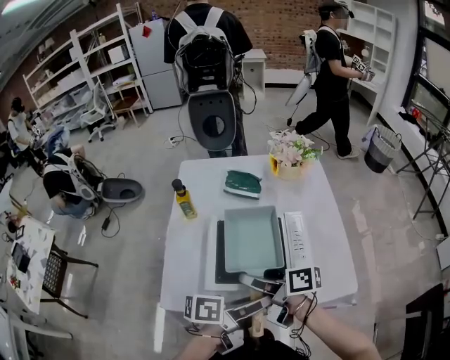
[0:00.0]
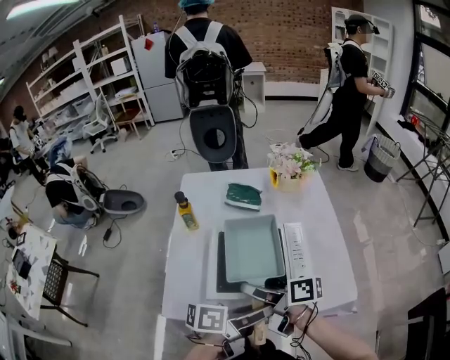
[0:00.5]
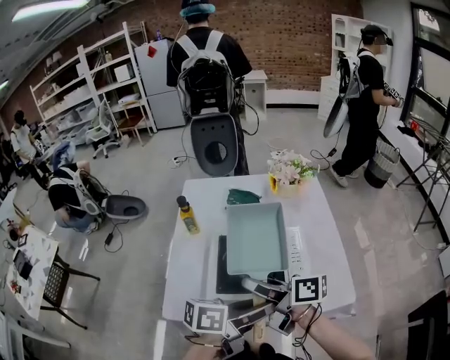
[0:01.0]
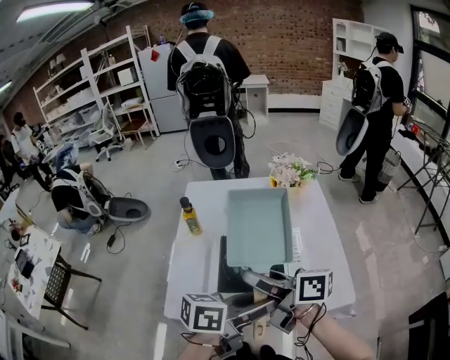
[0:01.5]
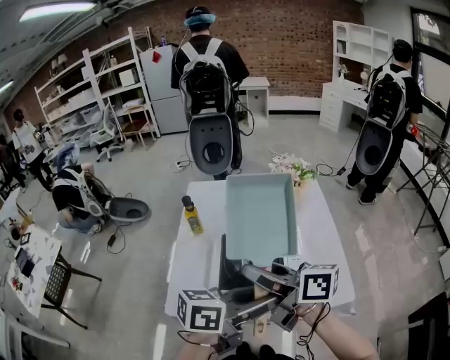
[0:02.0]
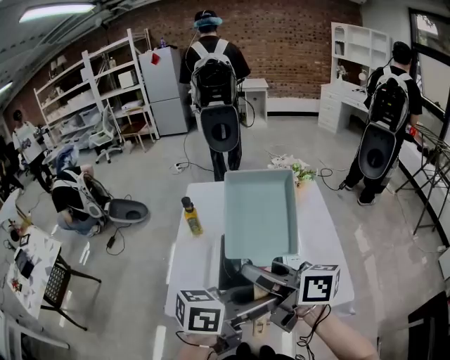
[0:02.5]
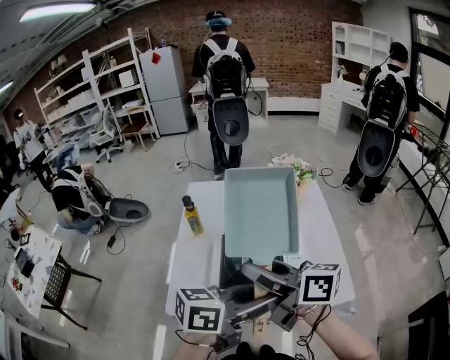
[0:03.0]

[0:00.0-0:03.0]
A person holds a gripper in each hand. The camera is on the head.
0:00.0 to 0:01.5: The two grippers go approximately 10 cm upward. The left gripper swivels some 20 degrees; the right gripper turns by about 20 degrees.
0:01.5 to 0:03.0: The right gripper heads upward, covering approximately 5 cm.

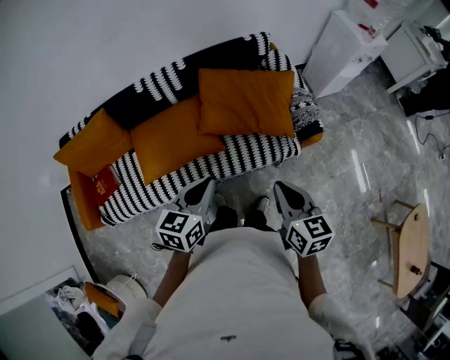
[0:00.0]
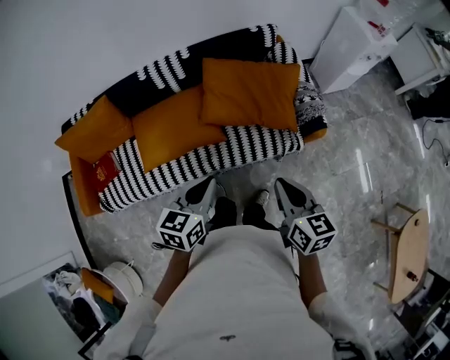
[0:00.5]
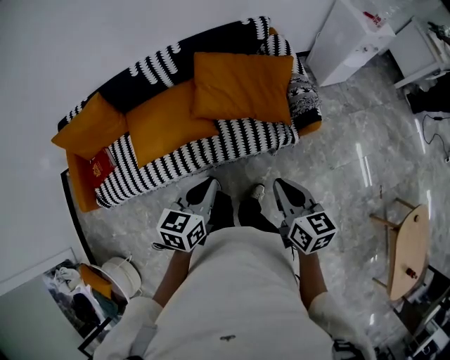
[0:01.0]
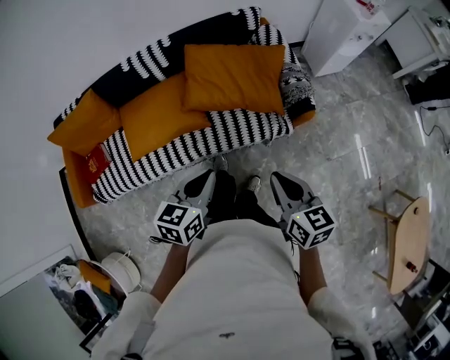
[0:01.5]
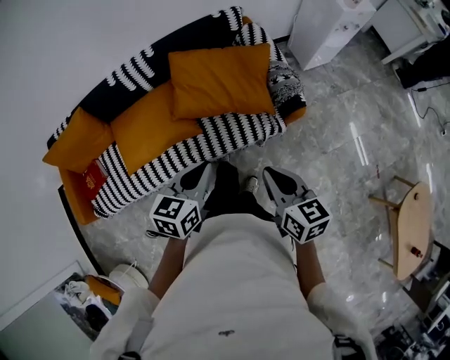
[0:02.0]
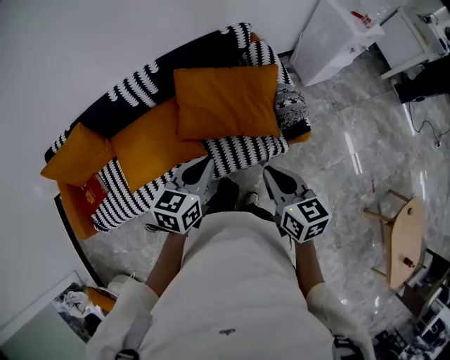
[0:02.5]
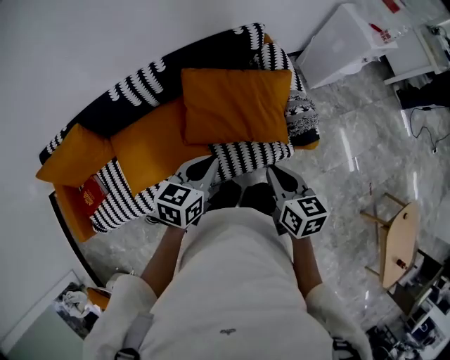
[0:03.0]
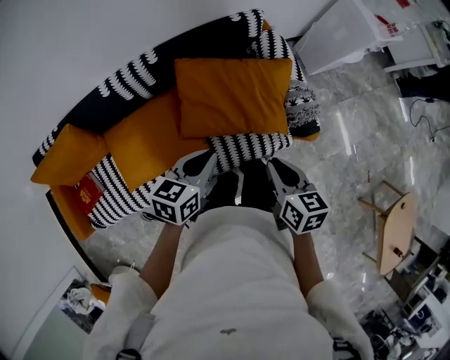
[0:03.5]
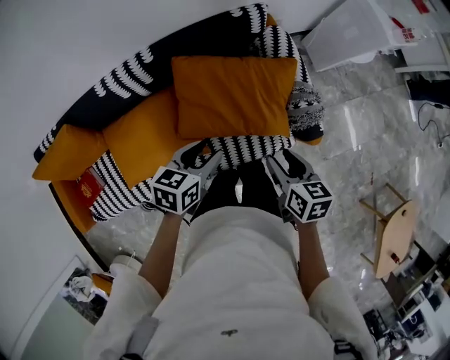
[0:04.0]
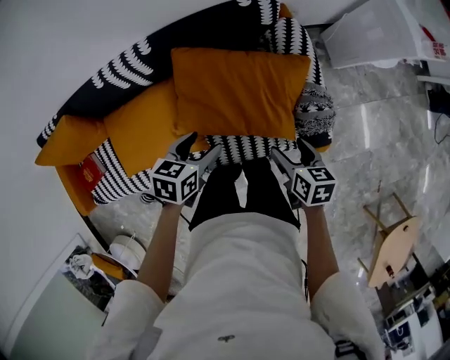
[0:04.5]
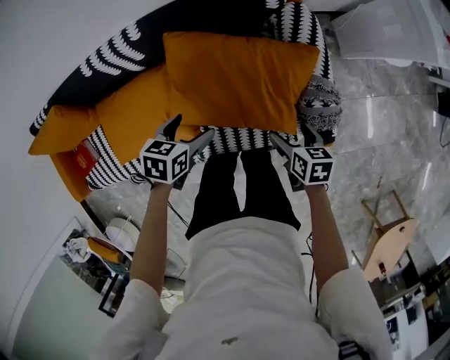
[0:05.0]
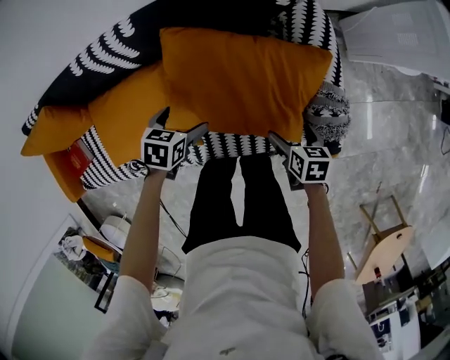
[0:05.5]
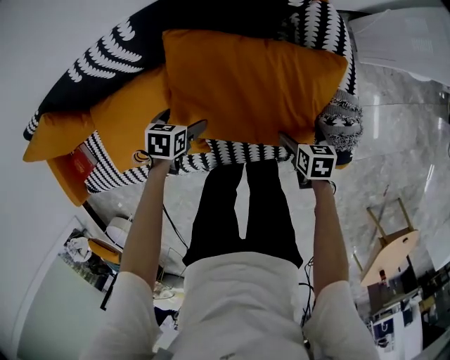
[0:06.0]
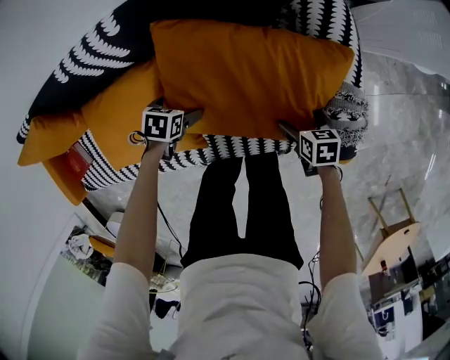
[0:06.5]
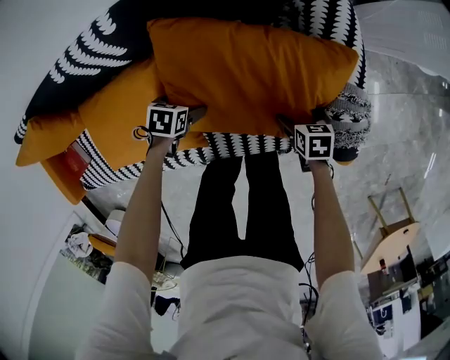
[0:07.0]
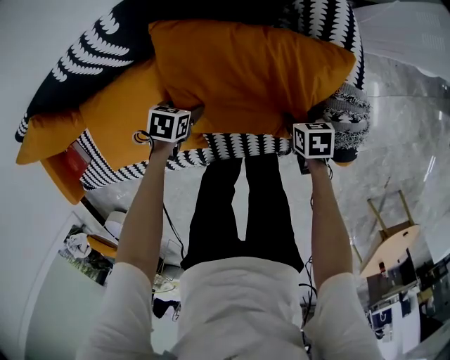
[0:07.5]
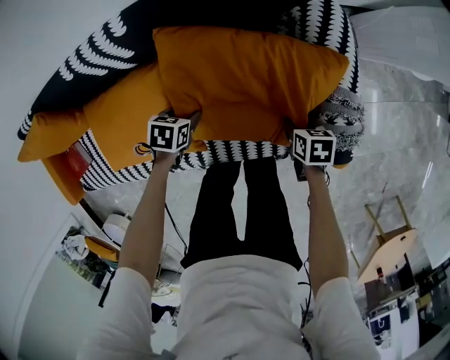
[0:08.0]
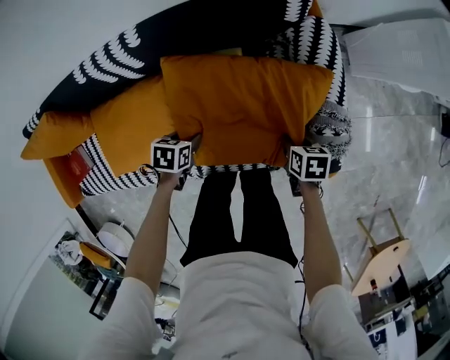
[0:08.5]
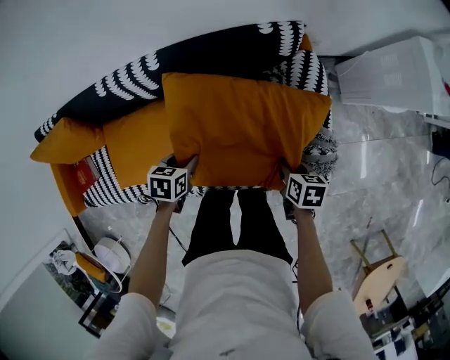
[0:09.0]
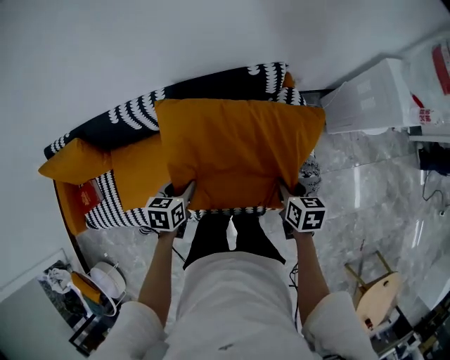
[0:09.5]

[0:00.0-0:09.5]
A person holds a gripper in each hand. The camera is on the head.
0:00.0 to 0:02.0: Both grippers travel together to the right, about 10 cm.
0:02.0 to 0:04.0: The right gripper shifts roughly 25 cm forward and downward; the left gripper shifts about 25 cm forward.
0:04.0 to 0:05.5: The grippers both shift downward by approximately 25 cm. The left gripper swivels roughly 20 degrees, and opens up. The right gripper opens up.
0:05.5 to 0:07.5: The two grippers go about 15 cm downward. The right gripper closes.
0:07.5 to 0:09.5: The two grippers go roughly 30 cm upward. The right gripper turns by approximately 20 degrees. Meanwhile the left gripper rotates approximately 30 degrees.

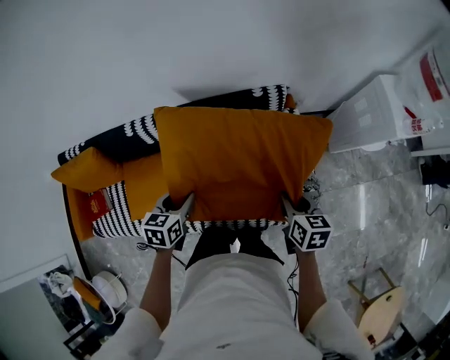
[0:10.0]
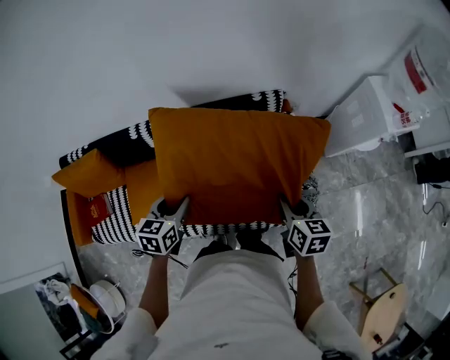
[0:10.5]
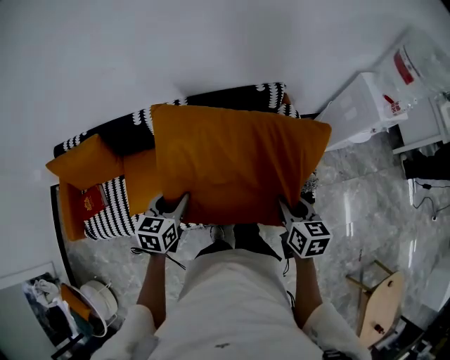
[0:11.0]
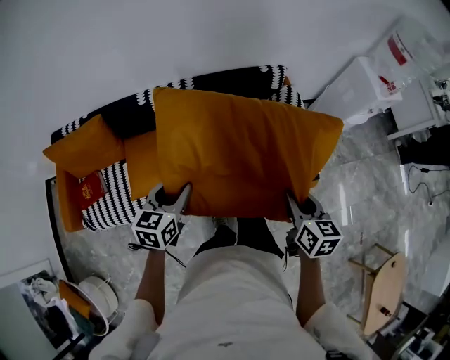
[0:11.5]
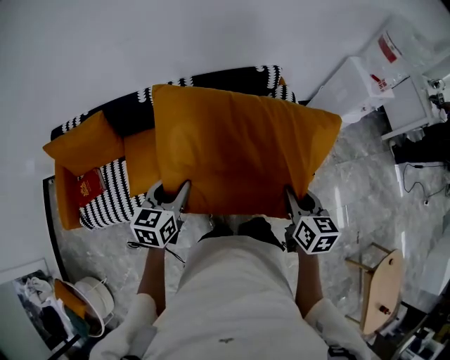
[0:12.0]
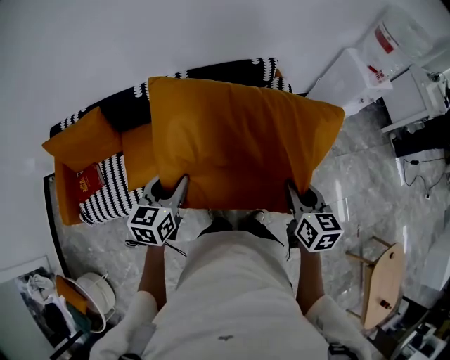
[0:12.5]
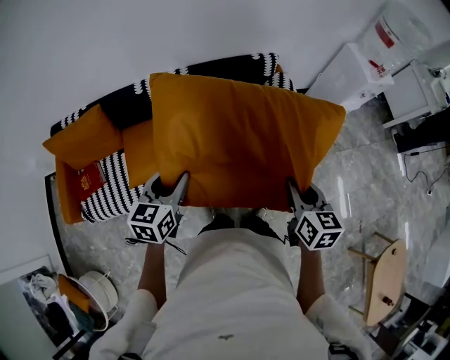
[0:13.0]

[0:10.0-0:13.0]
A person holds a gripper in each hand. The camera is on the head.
0:10.0 to 0:11.5: Both grippers move backward, to the left and upward, some 25 cm.
0:11.5 to 0:13.0: The left gripper changes place by approximately 5 cm, while the right gripper goes about 5 cm backward.

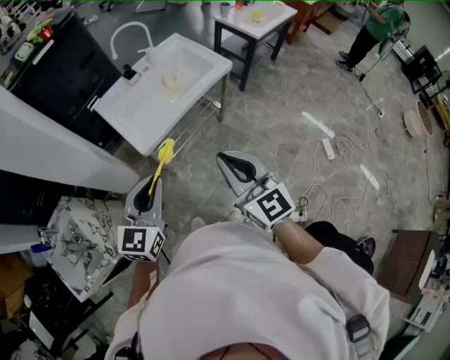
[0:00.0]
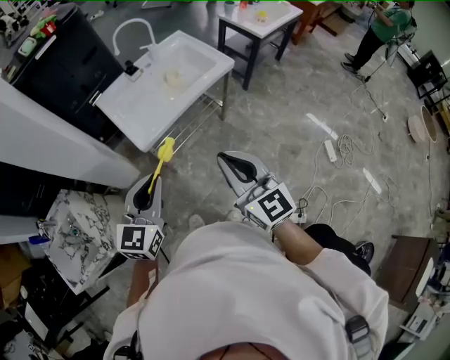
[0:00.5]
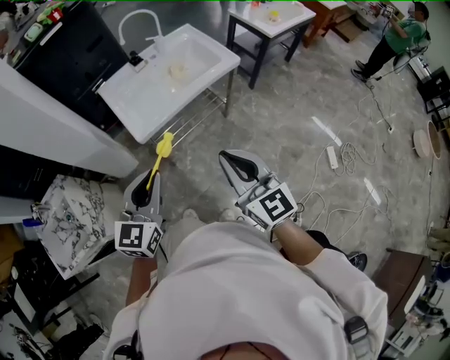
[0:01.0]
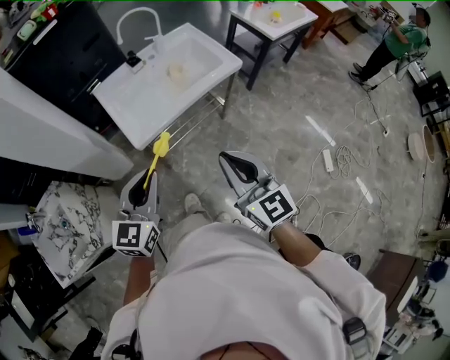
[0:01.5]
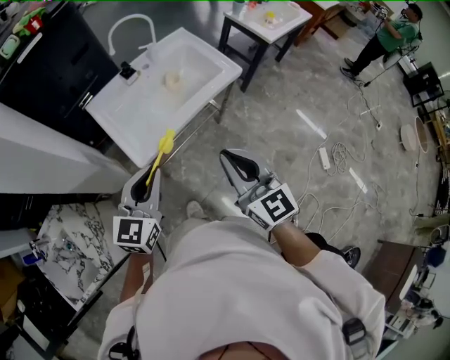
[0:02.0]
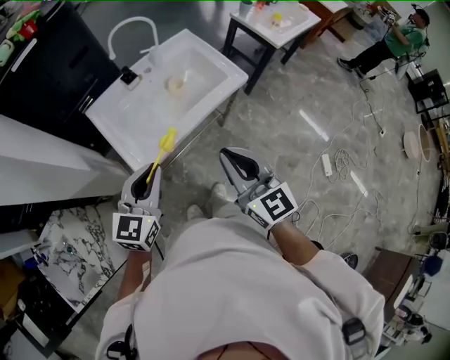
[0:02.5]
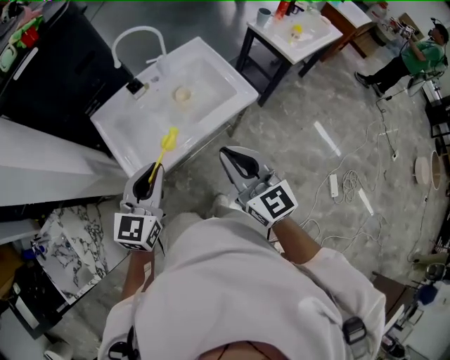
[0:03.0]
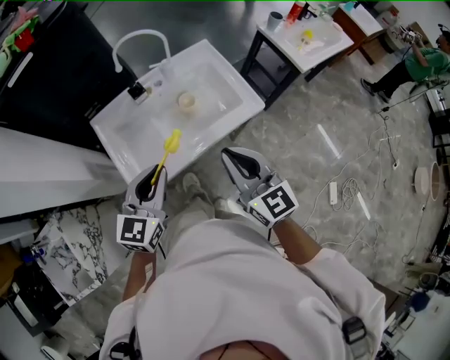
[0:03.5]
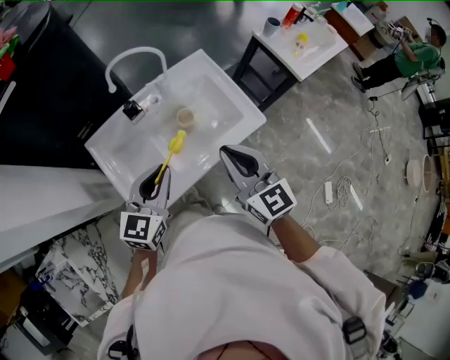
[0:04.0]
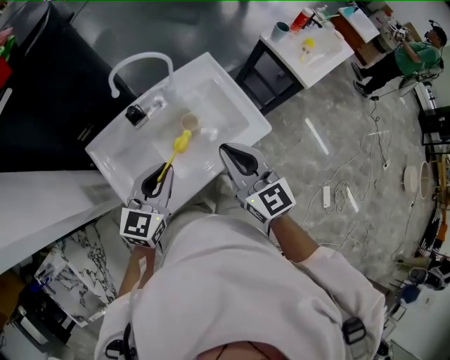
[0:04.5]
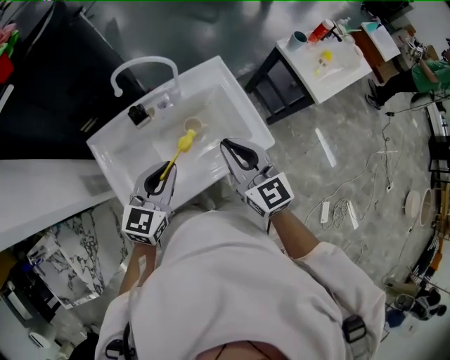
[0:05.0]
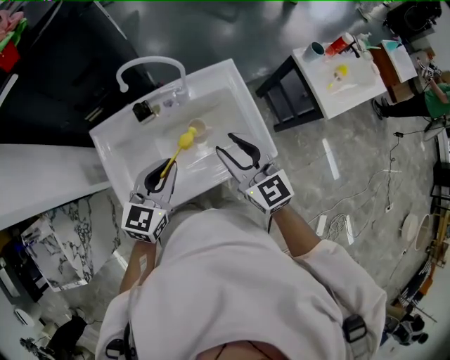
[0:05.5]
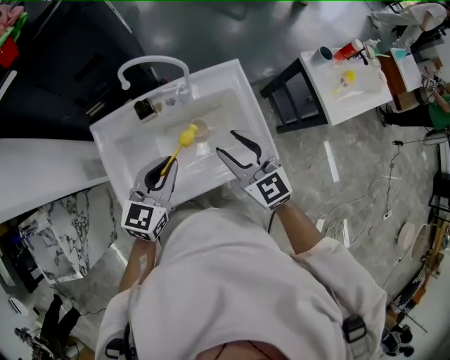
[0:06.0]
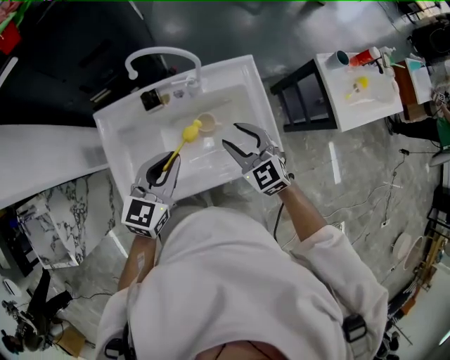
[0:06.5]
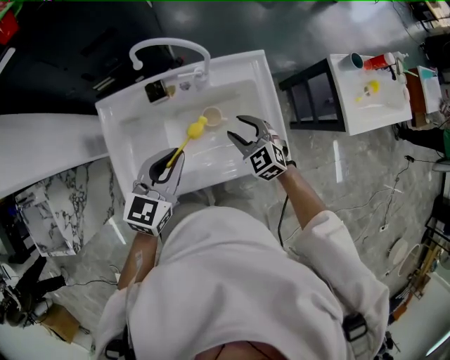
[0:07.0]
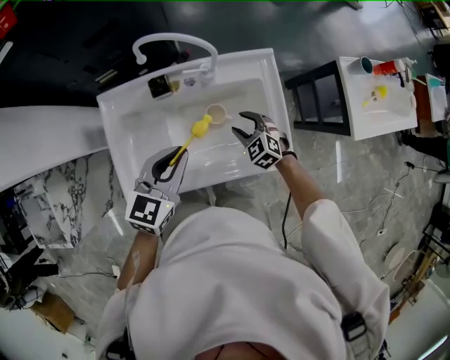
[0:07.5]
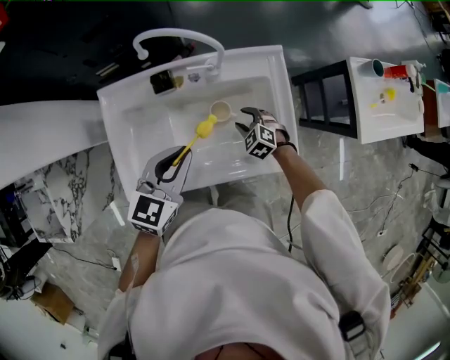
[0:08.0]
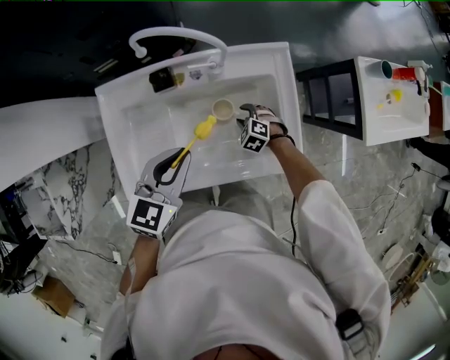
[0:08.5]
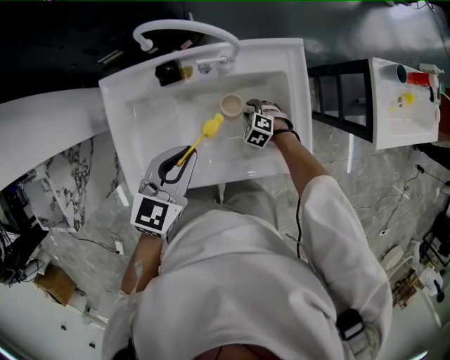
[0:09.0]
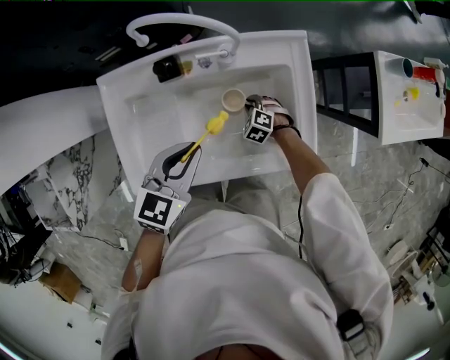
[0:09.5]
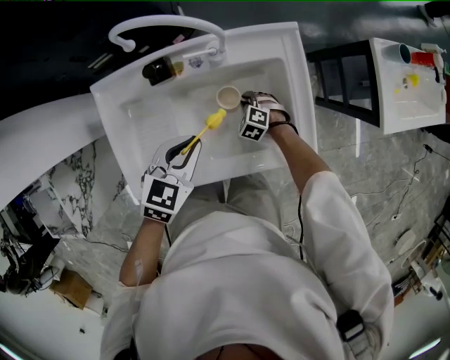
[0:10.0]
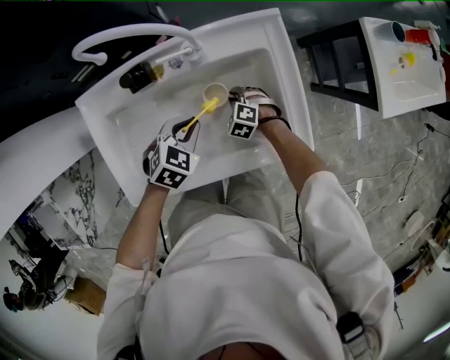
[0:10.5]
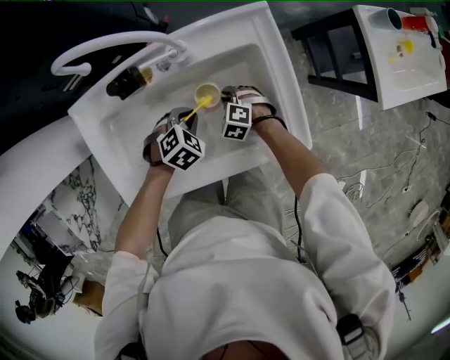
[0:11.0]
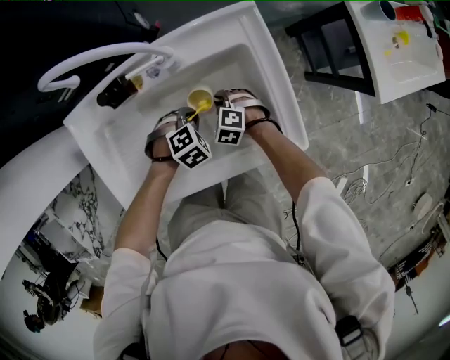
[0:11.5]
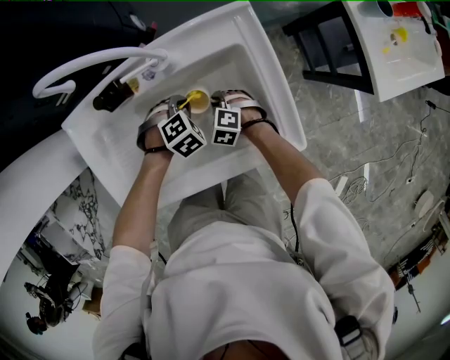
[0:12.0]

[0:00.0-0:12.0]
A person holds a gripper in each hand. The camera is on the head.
0:00.0 to 0:02.0: The grippers both shift forward by about 15 cm.
0:02.0 to 0:04.0: Both grippers move forward, approximately 30 cm.
0:04.0 to 0:06.0: The right gripper travels forward and downward by approximately 15 cm, turns by some 20 degrees, and opens its fingers. The left gripper is displaced forward by roughly 10 cm.
0:06.0 to 0:08.0: The right gripper moves downward, some 35 cm, and points its fingers some 40 degrees further downward; the left gripper goes approximately 5 cm downward.
0:08.0 to 0:10.0: The grippers both shift downward by about 10 cm. The right gripper closes its fingers.
0:10.0 to 0:12.0: The left gripper moves downward, approximately 20 cm, and tilts its fingers roughly 30 degrees downward.
